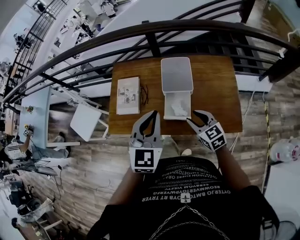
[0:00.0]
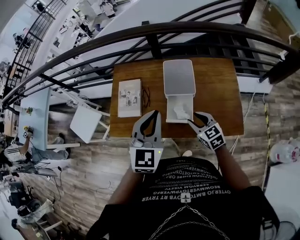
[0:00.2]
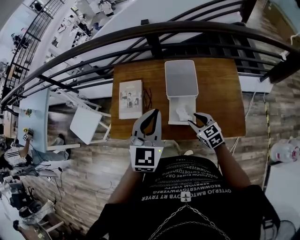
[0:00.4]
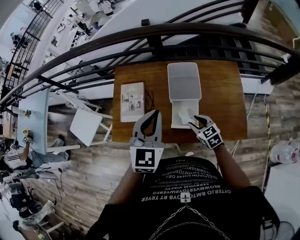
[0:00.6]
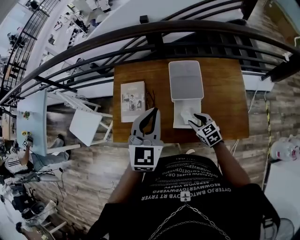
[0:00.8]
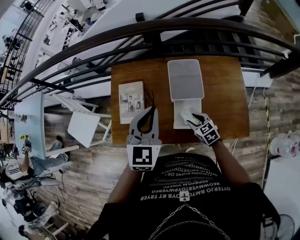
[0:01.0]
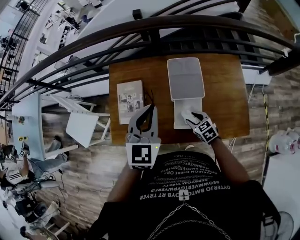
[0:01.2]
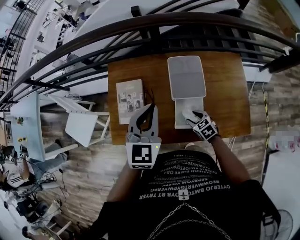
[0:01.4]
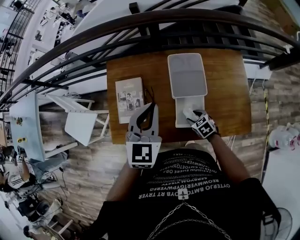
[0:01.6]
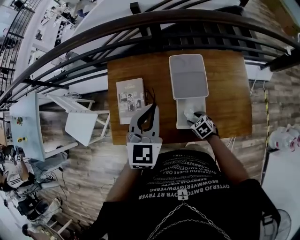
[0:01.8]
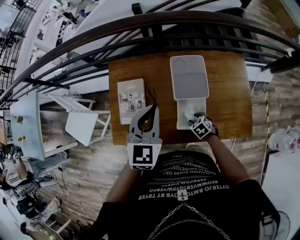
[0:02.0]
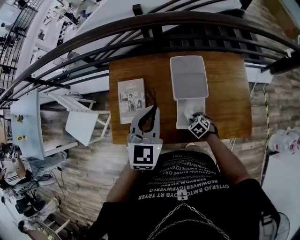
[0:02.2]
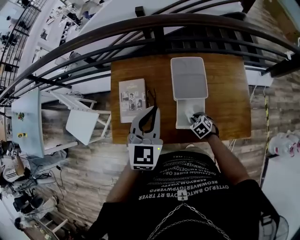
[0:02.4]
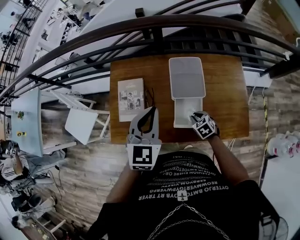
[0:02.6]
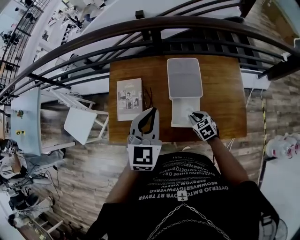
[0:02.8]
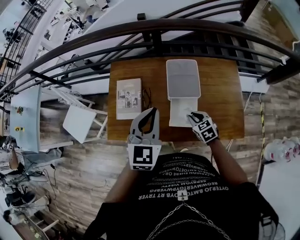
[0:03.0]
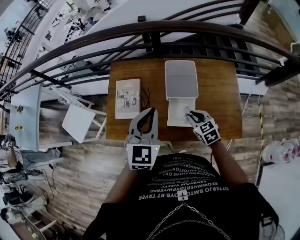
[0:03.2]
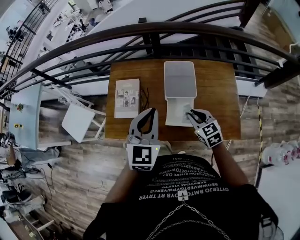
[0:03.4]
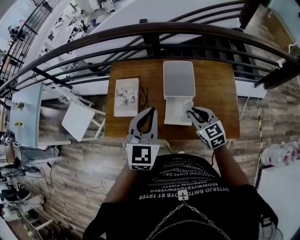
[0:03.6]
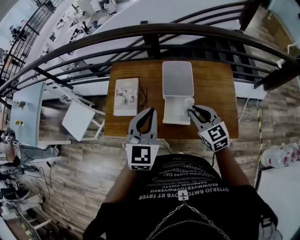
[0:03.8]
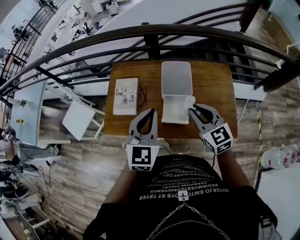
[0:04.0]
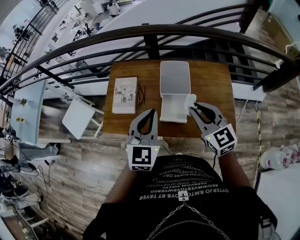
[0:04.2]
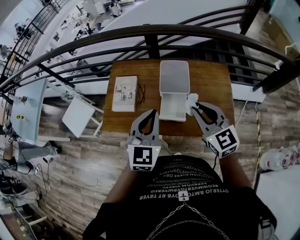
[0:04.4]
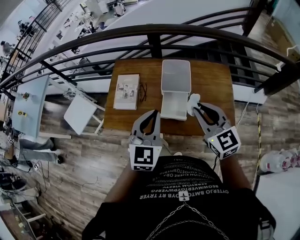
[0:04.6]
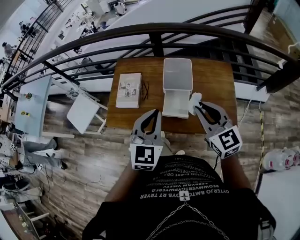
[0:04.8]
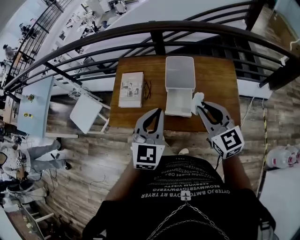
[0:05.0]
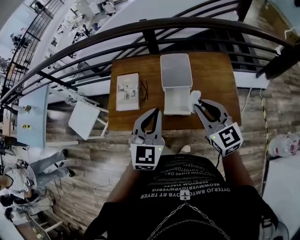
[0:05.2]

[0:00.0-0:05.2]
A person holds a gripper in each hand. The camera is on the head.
0:00.0 to 0:01.8: The left gripper heads forward, covering some 20 cm; the right gripper travels downward and forward by some 25 cm, and angles its fingers downward, by some 40 degrees.
0:01.8 to 0:03.4: The left gripper travels backward by about 10 cm, while the right gripper shifts roughly 20 cm upward, rotates roughly 30 degrees, and closes its fingers.
0:03.4 to 0:05.2: The left gripper goes some 10 cm backward; the right gripper travels upward and backward by approximately 20 cm, and turns by approximately 20 degrees.

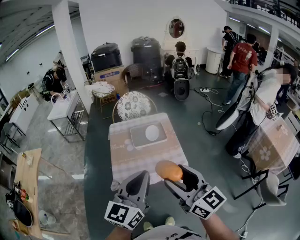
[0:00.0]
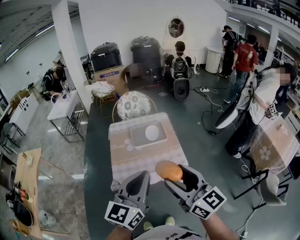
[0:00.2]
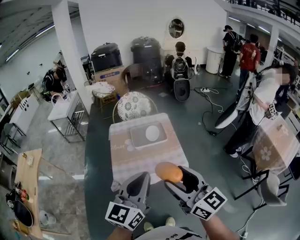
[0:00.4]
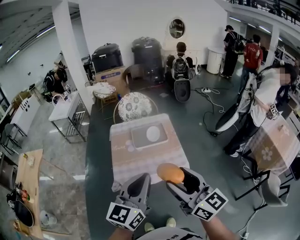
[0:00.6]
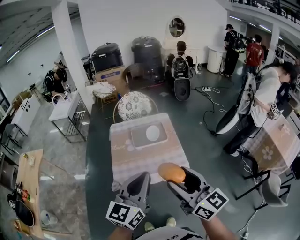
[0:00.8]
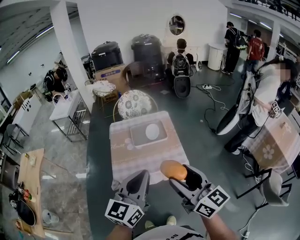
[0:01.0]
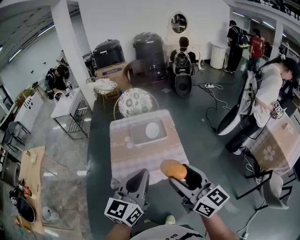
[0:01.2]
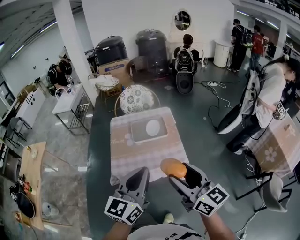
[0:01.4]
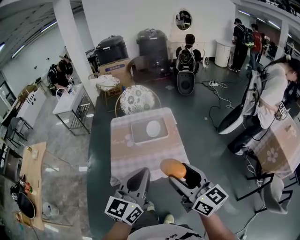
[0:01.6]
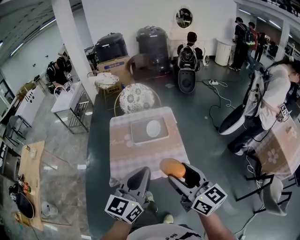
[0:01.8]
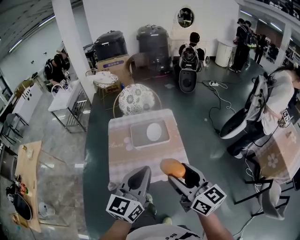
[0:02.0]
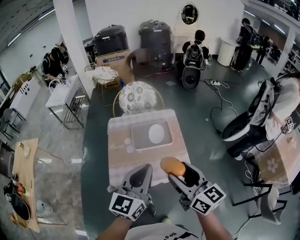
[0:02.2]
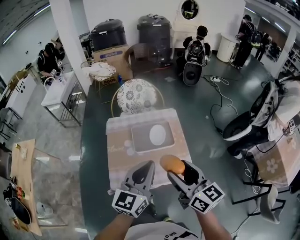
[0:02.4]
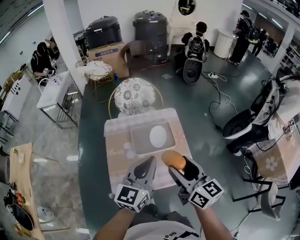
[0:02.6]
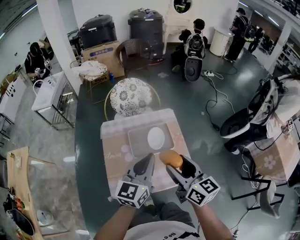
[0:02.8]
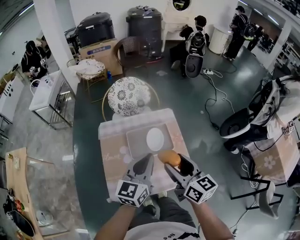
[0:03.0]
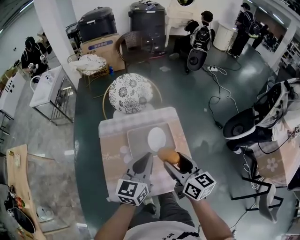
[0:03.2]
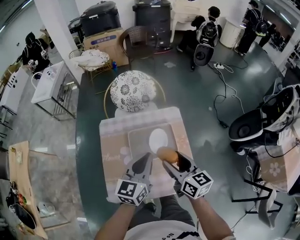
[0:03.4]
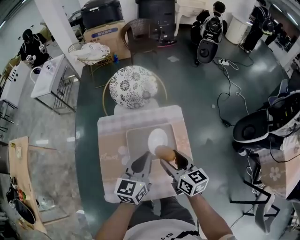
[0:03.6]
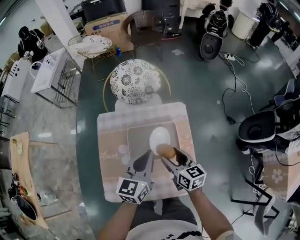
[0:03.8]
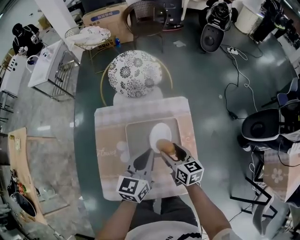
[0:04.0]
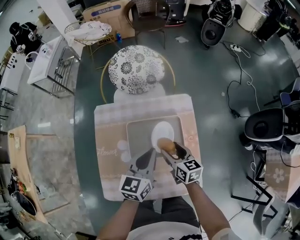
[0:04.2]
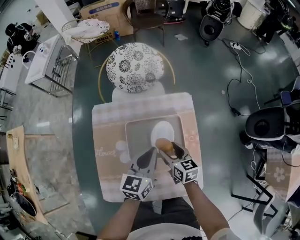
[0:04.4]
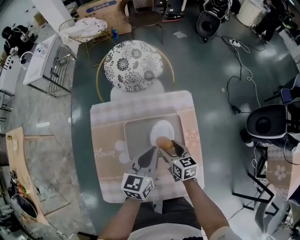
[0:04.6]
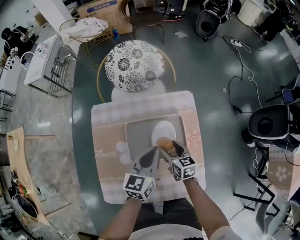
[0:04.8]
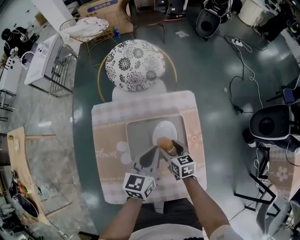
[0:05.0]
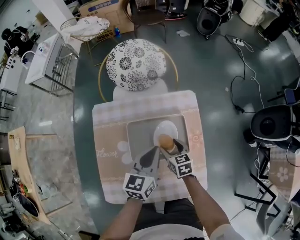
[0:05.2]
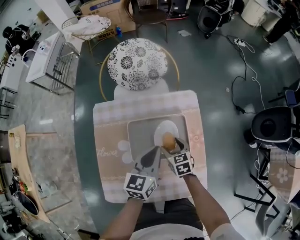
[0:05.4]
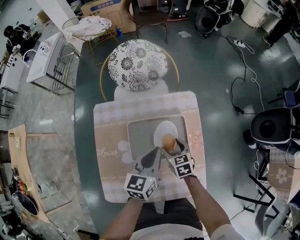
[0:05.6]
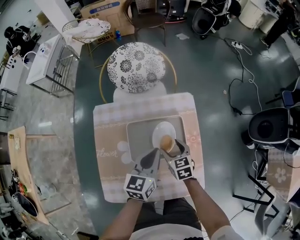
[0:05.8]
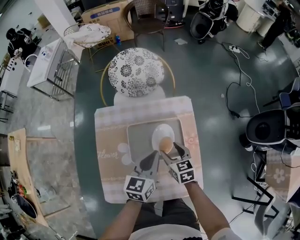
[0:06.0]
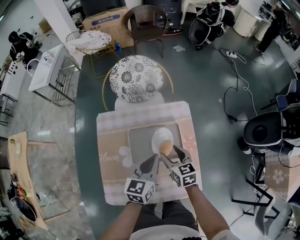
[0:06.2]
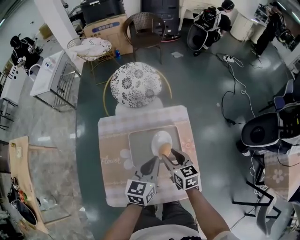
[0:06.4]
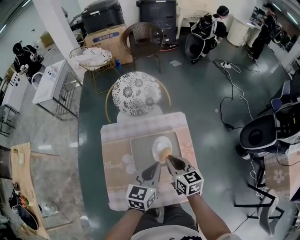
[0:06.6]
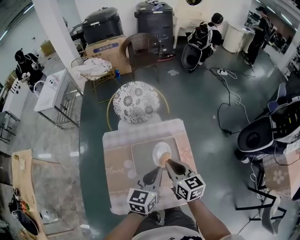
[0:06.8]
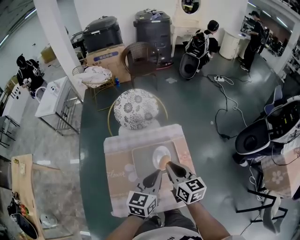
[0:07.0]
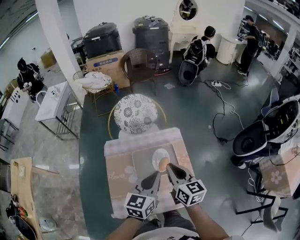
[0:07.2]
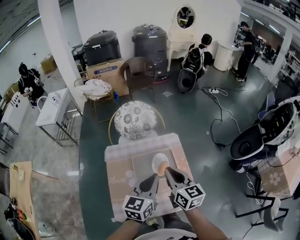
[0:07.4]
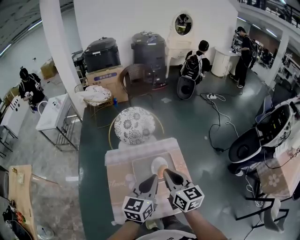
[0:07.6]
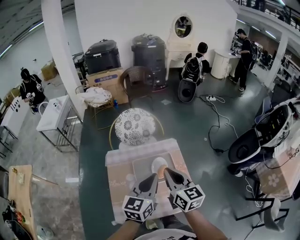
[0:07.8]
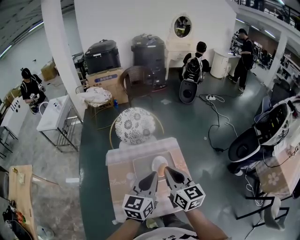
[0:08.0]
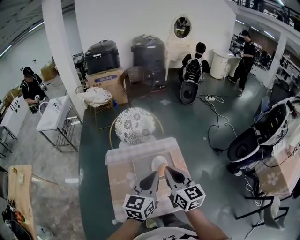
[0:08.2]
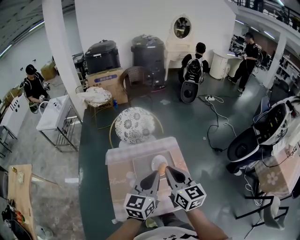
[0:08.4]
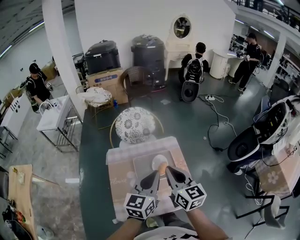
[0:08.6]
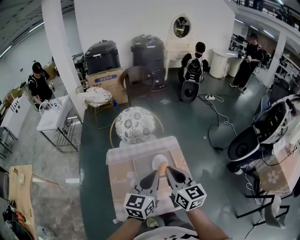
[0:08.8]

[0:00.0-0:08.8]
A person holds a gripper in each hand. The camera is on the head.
0:00.0 to 0:01.4: The right gripper moves to the right, some 5 cm; the left gripper changes place by some 5 cm.
0:01.4 to 0:03.0: Both grippers travel together forward, about 30 cm.
0:03.0 to 0:04.4: The grippers both shift downward and forward by about 30 cm. The right gripper swivels about 30 degrees.
0:05.8 to 0:07.4: The left gripper moves upward and backward, approximately 20 cm. The right gripper heads upward, covering some 30 cm, tips its fingers upward by about 30 degrees, and closes.
0:07.4 to 0:08.8: The right gripper shifts approximately 5 cm upward, while the left gripper changes place by about 5 cm.

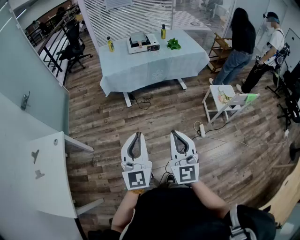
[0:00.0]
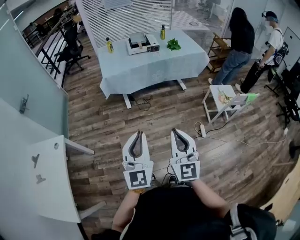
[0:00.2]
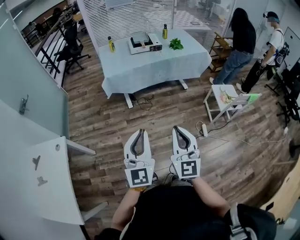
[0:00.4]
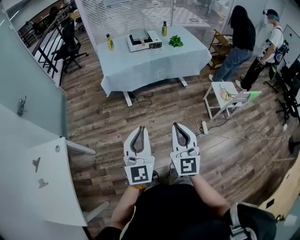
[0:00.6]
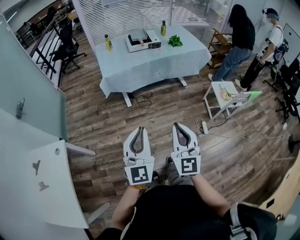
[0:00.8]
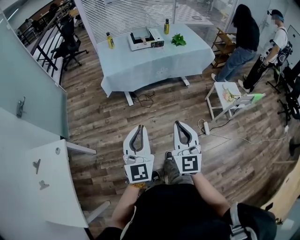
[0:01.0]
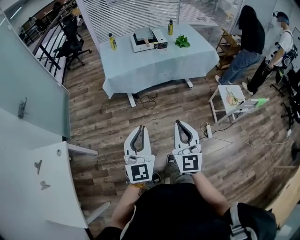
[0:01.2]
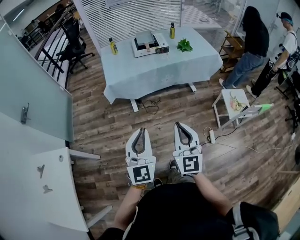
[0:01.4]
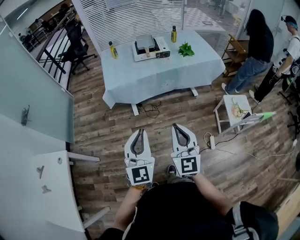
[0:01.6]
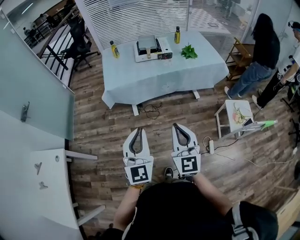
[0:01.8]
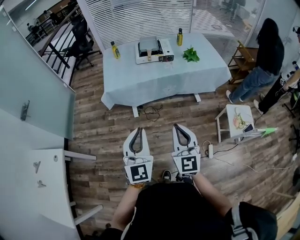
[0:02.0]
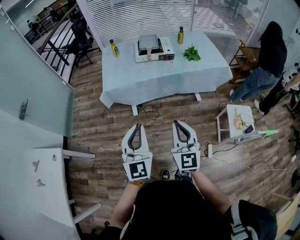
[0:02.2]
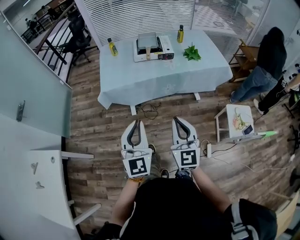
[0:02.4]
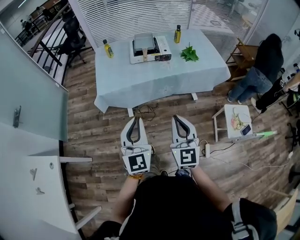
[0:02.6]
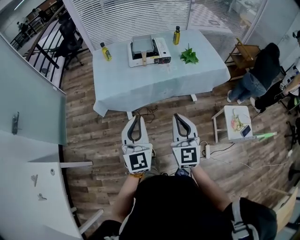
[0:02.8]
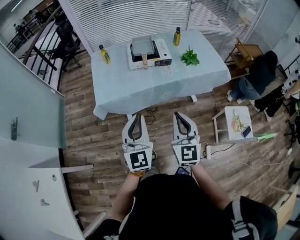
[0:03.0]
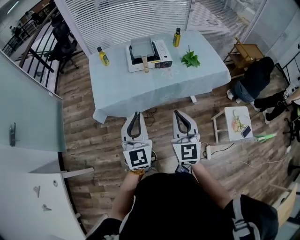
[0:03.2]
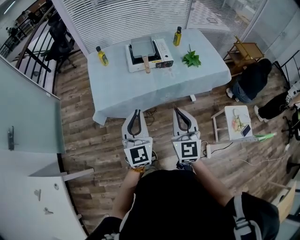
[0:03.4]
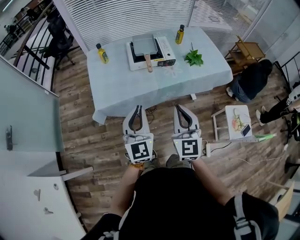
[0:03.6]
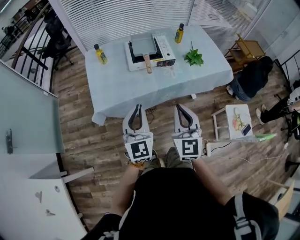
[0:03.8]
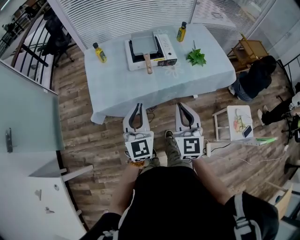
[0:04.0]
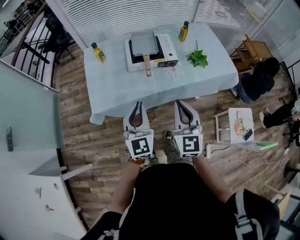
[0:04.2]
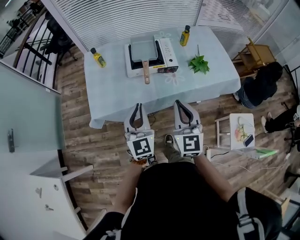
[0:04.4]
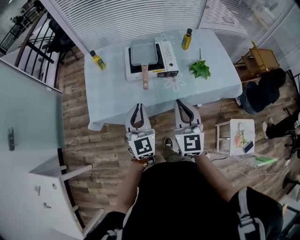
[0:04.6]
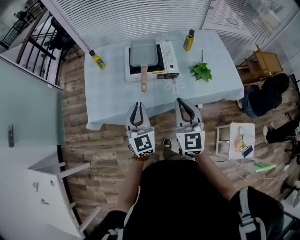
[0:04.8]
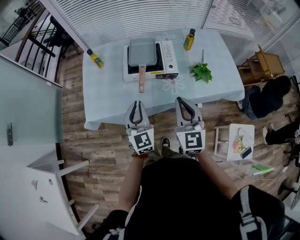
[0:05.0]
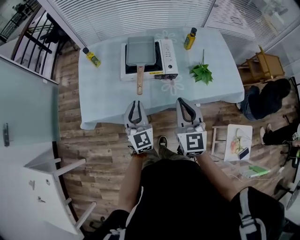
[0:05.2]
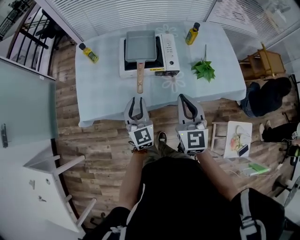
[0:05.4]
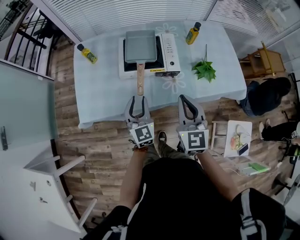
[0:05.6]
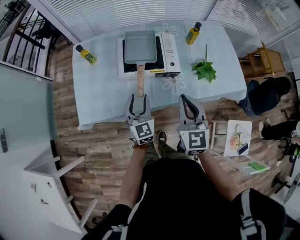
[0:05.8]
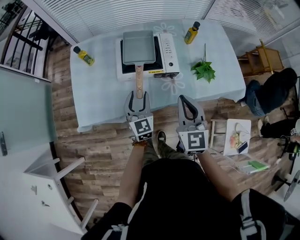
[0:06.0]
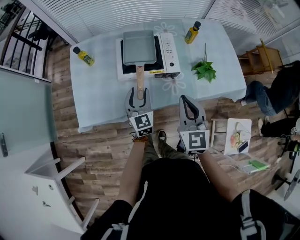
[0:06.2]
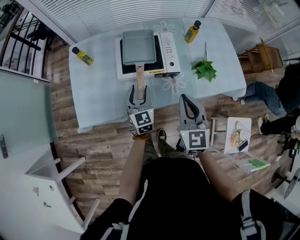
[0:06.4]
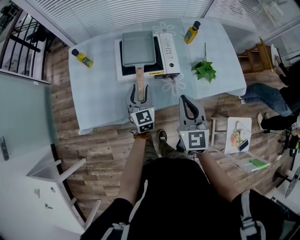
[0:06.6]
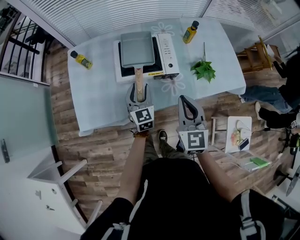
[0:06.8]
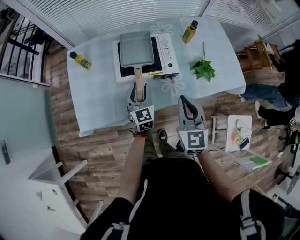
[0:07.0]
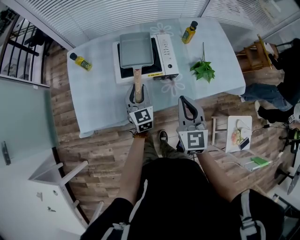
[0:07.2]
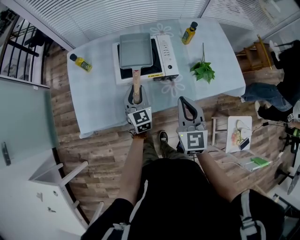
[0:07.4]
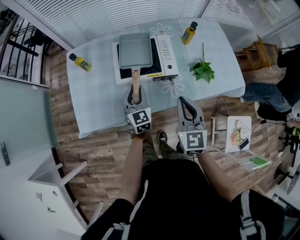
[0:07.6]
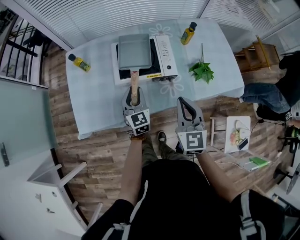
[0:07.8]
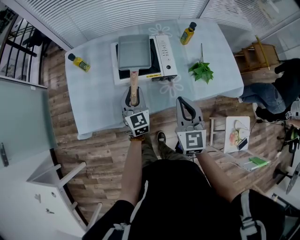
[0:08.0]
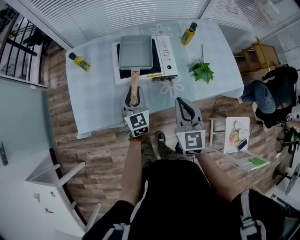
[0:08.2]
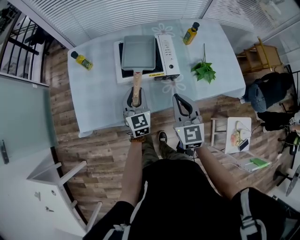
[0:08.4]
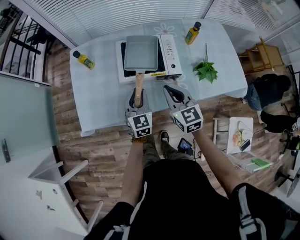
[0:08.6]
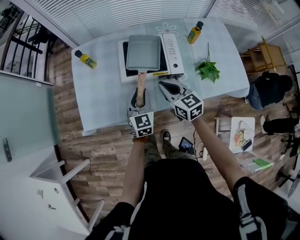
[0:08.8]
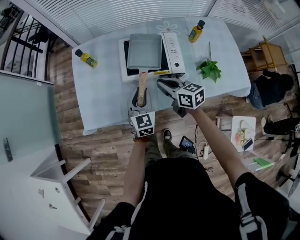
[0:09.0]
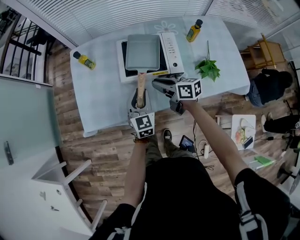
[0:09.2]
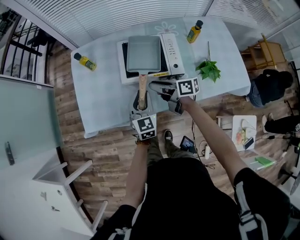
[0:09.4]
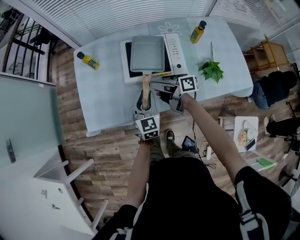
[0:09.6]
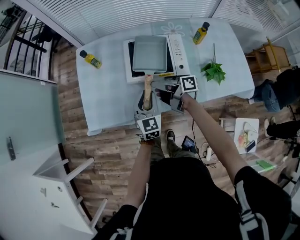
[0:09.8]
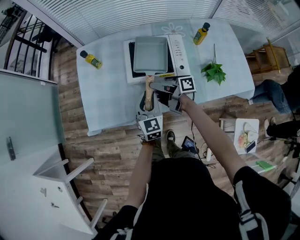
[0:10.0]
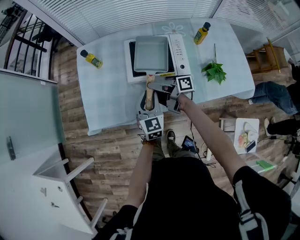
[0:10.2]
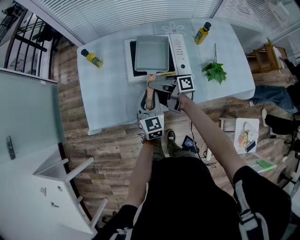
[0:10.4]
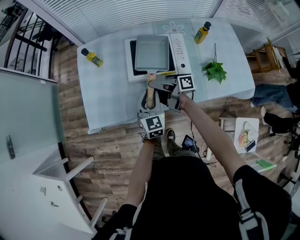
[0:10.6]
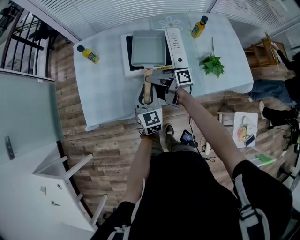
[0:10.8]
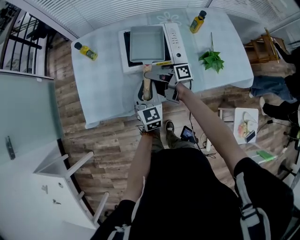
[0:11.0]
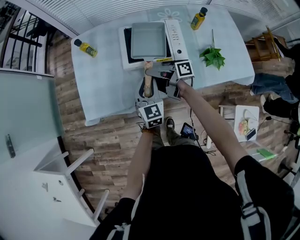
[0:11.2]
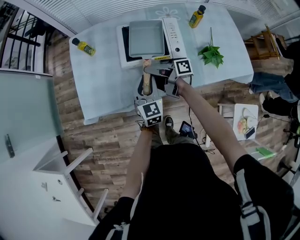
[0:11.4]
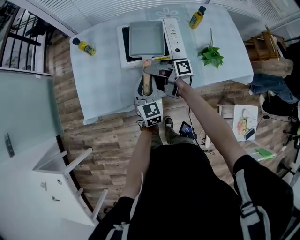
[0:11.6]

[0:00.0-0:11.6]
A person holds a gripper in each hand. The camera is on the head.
0:00.0 to 0:01.4: The two grippers go some 20 cm forward.
0:01.4 to 0:02.8: The two grippers go approximately 25 cm forward.
0:02.8 to 0:04.4: Both grippers move forward, approximately 25 cm.
0:04.4 to 0:05.8: The left gripper moves forward and downward, approximately 20 cm, and opens its fingers. The right gripper heads forward and to the right, covering about 15 cm.
0:05.8 to 0:07.2: The left gripper heads forward, covering approximately 10 cm.
0:07.2 to 0:08.8: The right gripper goes roughly 15 cm forward, downward and to the left, and swivels approximately 30 degrees.
0:08.8 to 0:10.2: The right gripper travels downward, forward and to the left by about 10 cm, twists about 60 degrees clockwise, seen from behind, and opens.
0:10.2 to 0:11.6: Neither gripper changes place.
